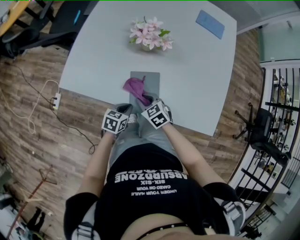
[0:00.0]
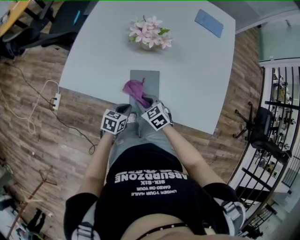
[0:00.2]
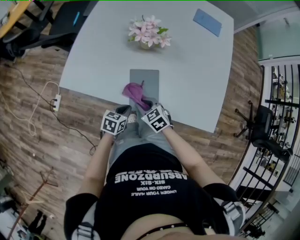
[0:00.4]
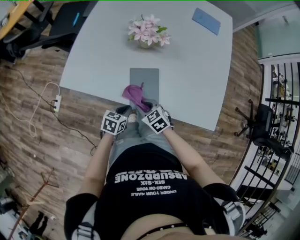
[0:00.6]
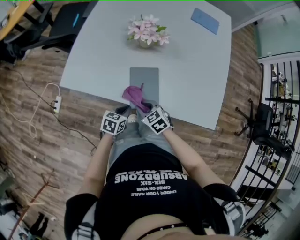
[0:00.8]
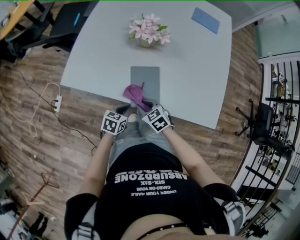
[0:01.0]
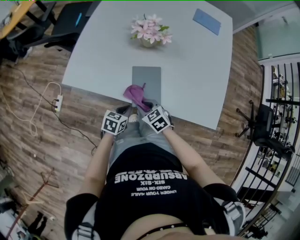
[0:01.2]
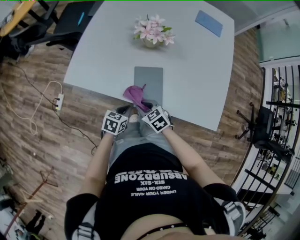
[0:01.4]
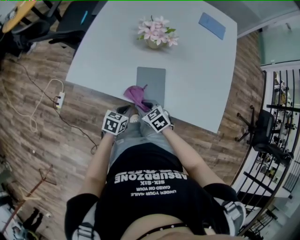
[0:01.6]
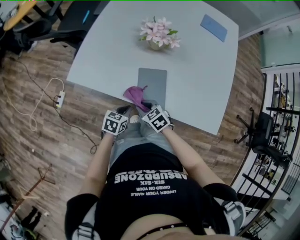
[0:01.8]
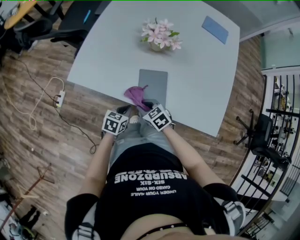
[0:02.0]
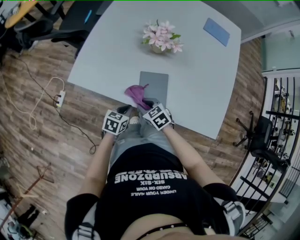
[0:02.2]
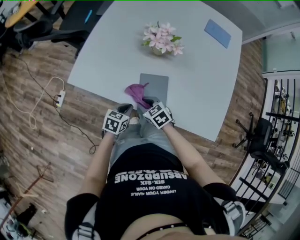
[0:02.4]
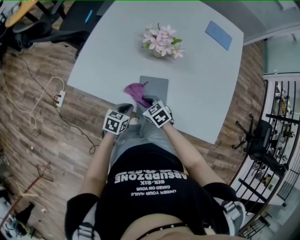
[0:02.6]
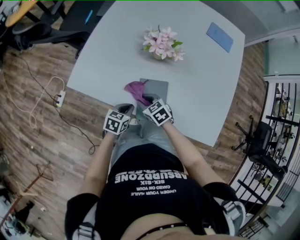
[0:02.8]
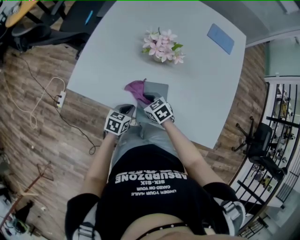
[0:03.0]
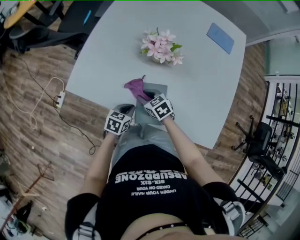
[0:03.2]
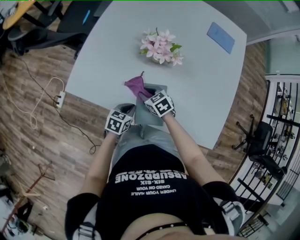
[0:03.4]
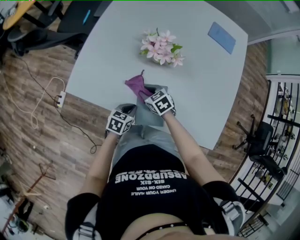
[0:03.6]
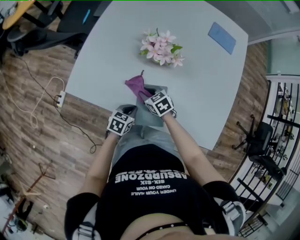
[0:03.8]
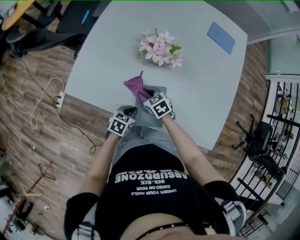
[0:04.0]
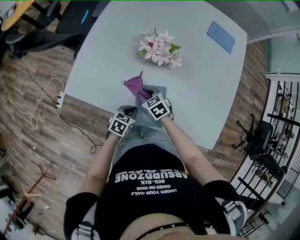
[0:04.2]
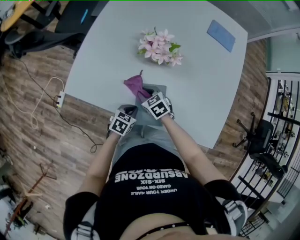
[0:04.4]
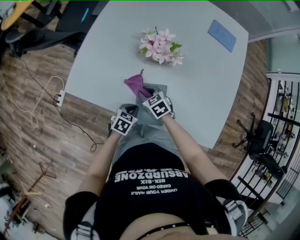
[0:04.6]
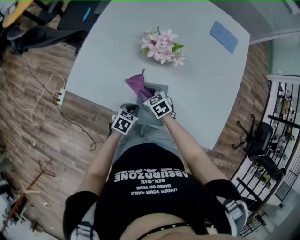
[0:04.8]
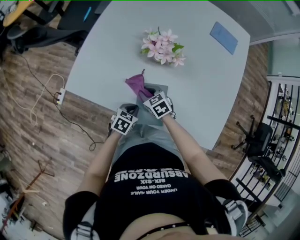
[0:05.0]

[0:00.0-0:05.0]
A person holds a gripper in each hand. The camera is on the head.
0:00.0 to 0:01.6: The left gripper shifts by approximately 5 cm. Meanwhile the right gripper shifts about 5 cm backward.
0:01.6 to 0:03.4: The left gripper travels forward by roughly 10 cm. Meanwhile the right gripper shifts about 15 cm forward.
0:03.4 to 0:05.0: There are only small adjustments of the grippers.

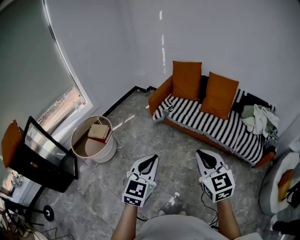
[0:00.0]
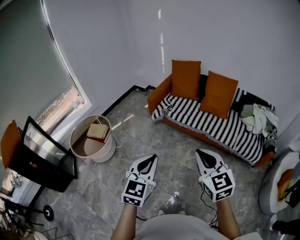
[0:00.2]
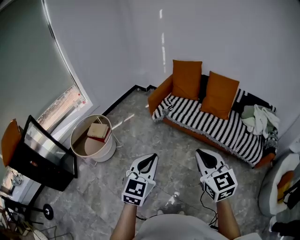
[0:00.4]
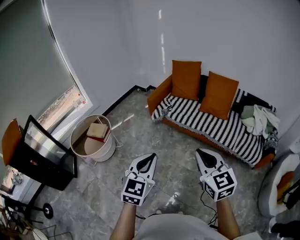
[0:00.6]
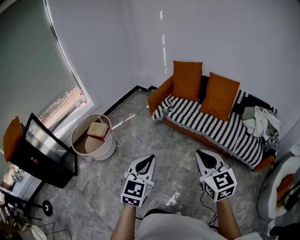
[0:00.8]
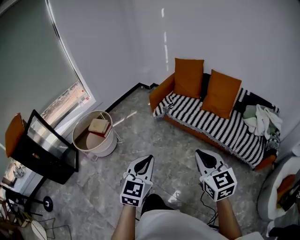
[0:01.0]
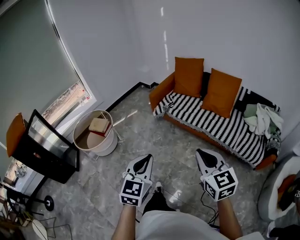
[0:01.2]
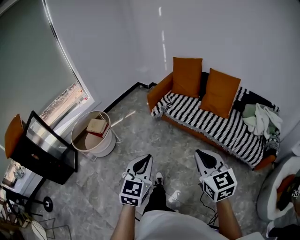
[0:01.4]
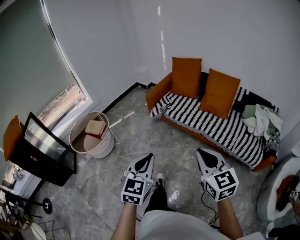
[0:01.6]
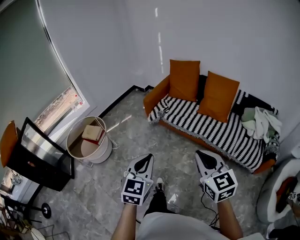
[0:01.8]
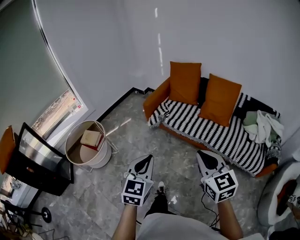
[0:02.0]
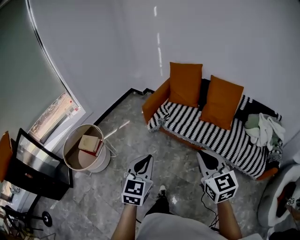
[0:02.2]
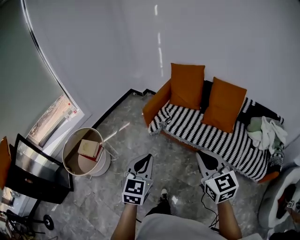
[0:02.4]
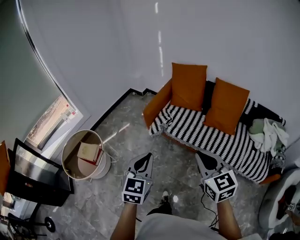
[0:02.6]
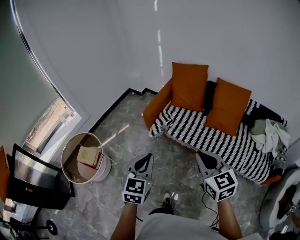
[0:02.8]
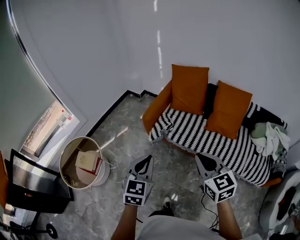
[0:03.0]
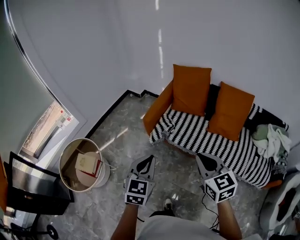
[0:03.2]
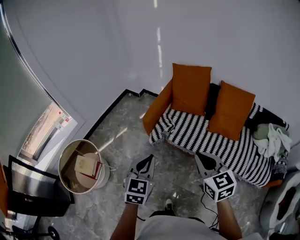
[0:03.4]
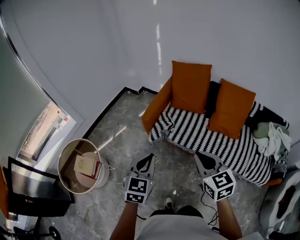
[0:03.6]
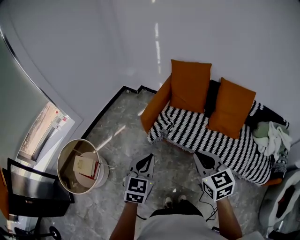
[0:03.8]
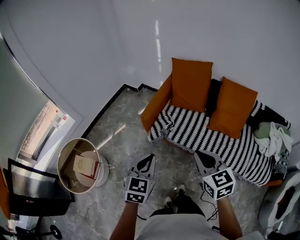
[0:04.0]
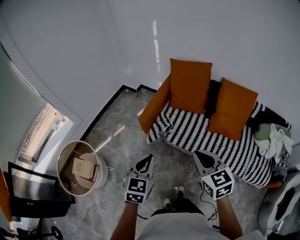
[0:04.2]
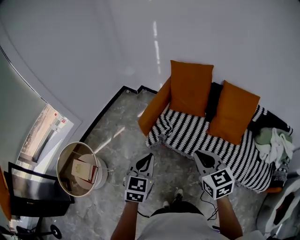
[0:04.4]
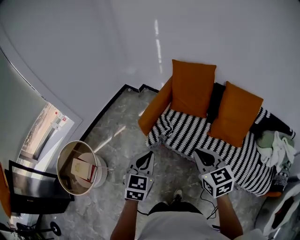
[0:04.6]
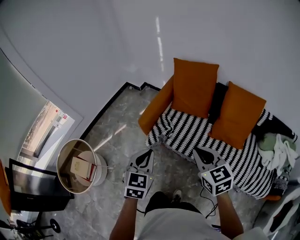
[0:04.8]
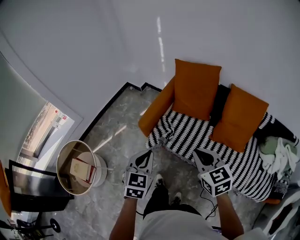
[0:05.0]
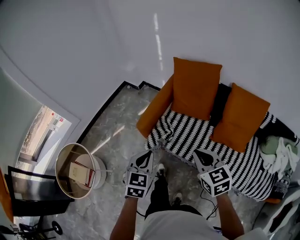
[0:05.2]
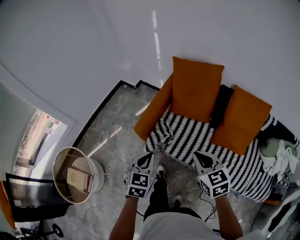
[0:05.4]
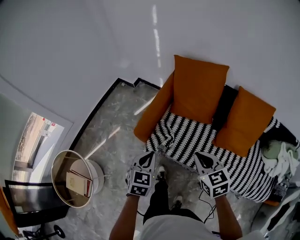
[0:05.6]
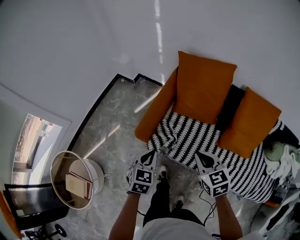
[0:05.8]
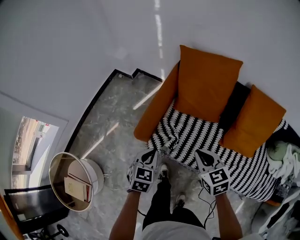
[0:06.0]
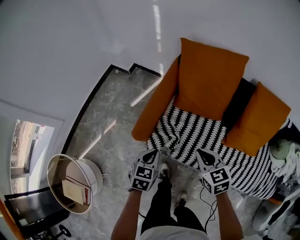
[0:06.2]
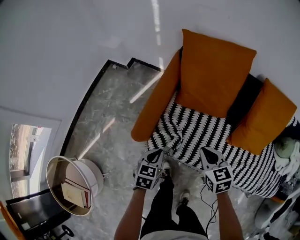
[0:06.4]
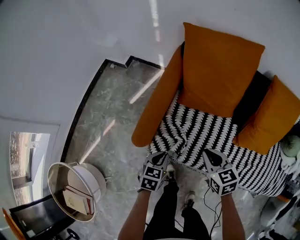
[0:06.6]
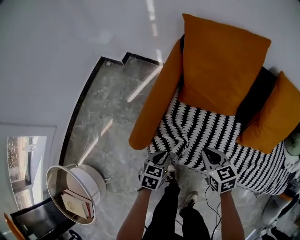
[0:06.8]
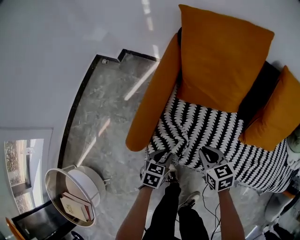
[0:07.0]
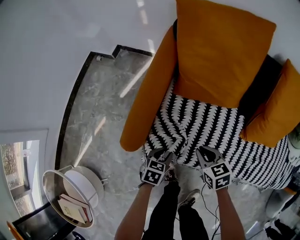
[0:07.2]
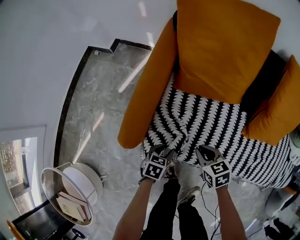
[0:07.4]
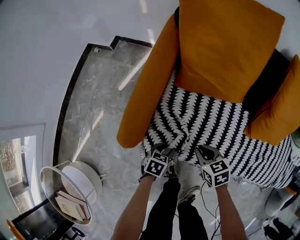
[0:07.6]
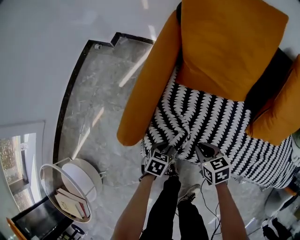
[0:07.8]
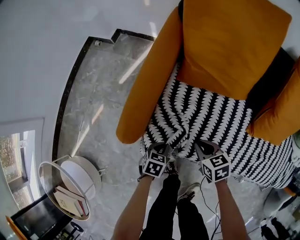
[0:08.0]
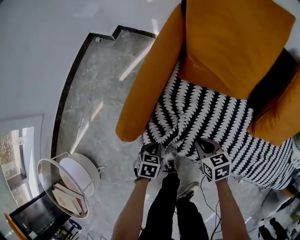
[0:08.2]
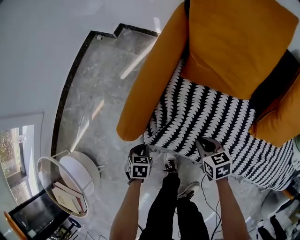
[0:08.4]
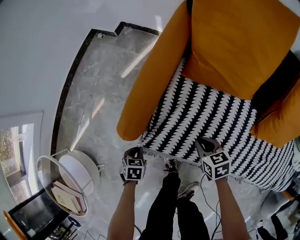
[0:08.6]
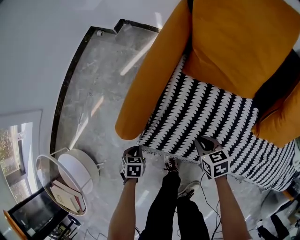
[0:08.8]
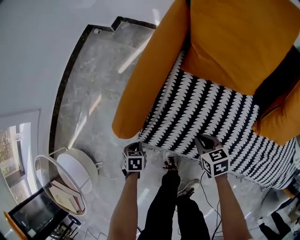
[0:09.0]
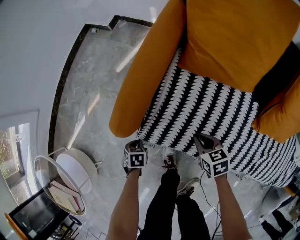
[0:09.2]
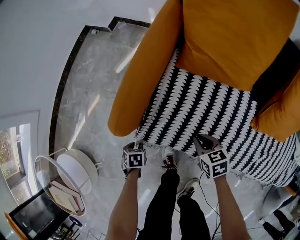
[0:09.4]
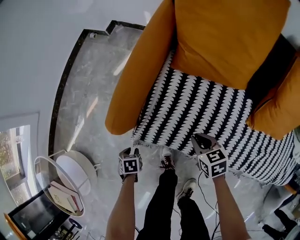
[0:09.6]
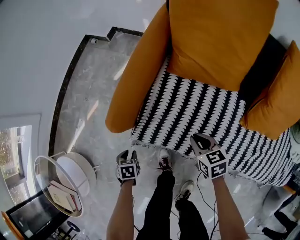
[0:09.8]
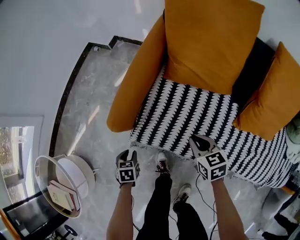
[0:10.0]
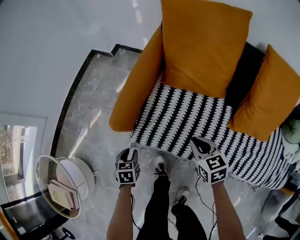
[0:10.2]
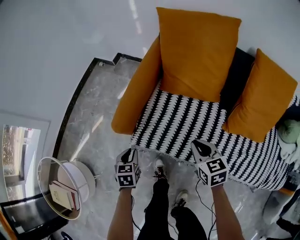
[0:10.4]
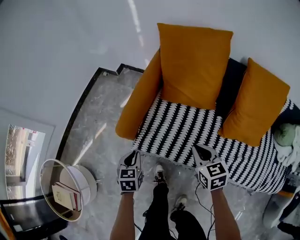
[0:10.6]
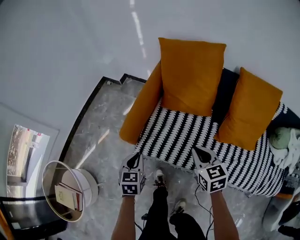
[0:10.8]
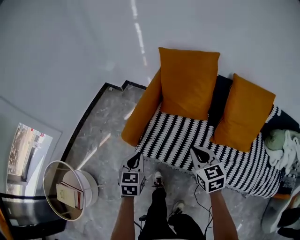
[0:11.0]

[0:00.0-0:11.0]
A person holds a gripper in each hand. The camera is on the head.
0:00.0 to 0:01.6: Both grippers move to the right, some 10 cm.
0:01.6 to 0:03.2: The pair of grippers is taken forward, about 40 cm.
0:03.2 to 0:04.8: The two grippers go approximately 20 cm forward.
0:04.8 to 0:06.2: The right gripper heads forward and downward, covering roughly 35 cm, while the left gripper goes some 40 cm downward and forward, and turns by some 20 degrees.
0:06.2 to 0:07.8: The grippers both shift downward by some 30 cm. The right gripper turns by approximately 20 degrees. Meanwhile the left gripper turns by about 30 degrees, and opens up.
0:07.8 to 0:09.4: The right gripper is displaced downward by approximately 5 cm. The left gripper ends up some 20 cm from where it was, changes its angle by about 30 degrees, and closes, then opens again.
0:09.4 to 0:11.0: Both grippers move upward, about 40 cm. The right gripper swivels about 30 degrees. Meanwhile the left gripper points its fingers about 50 degrees further upward, and closes up.

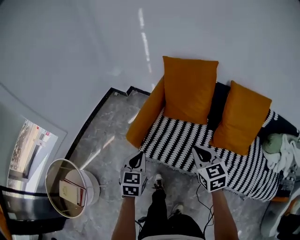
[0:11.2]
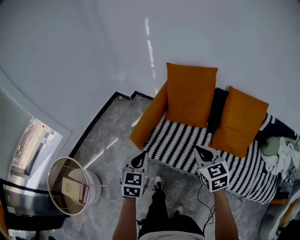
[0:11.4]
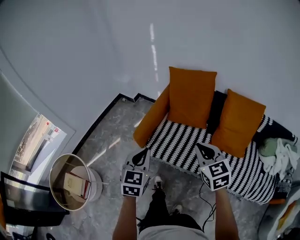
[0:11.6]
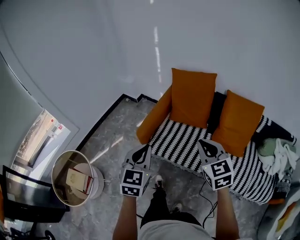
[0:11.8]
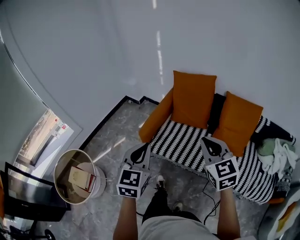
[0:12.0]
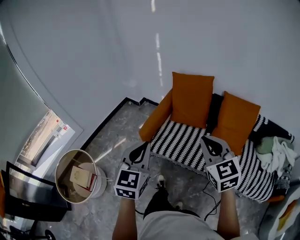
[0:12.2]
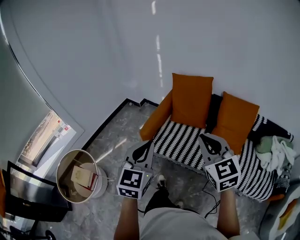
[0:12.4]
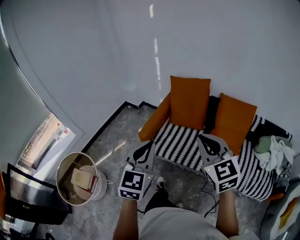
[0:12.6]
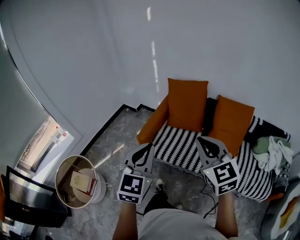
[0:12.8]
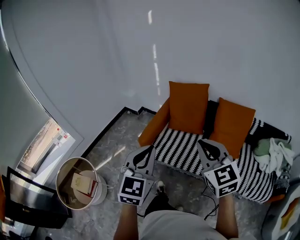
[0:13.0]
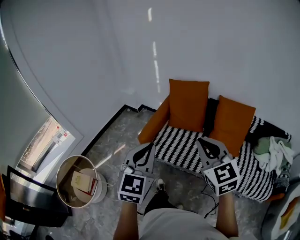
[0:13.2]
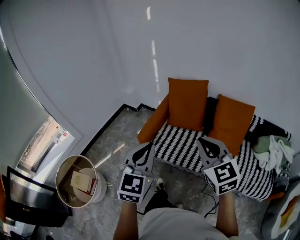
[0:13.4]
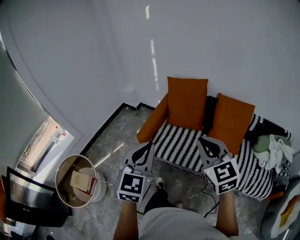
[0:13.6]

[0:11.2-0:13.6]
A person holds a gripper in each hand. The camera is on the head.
0:11.2 to 0:12.4: The two grippers go about 35 cm upward and backward. The left gripper rotates approximately 20 degrees; the right gripper rotates roughly 20 degrees.
0:12.4 to 0:13.6: There are only small adjustments of the grippers.

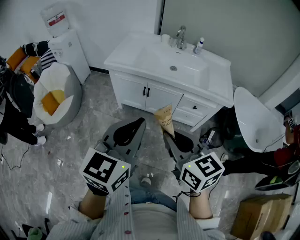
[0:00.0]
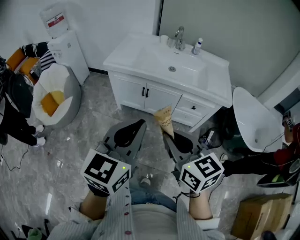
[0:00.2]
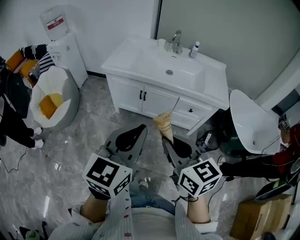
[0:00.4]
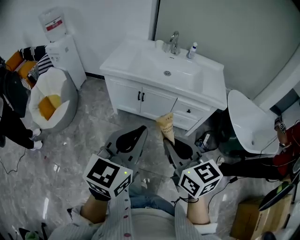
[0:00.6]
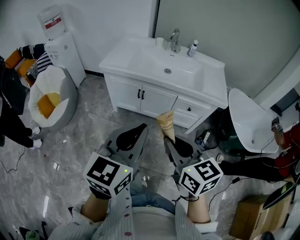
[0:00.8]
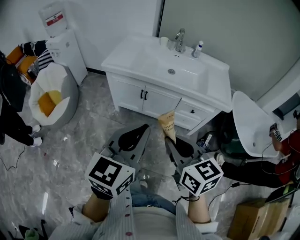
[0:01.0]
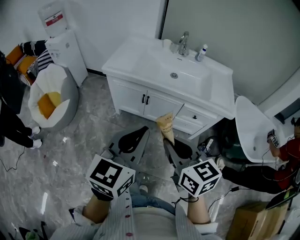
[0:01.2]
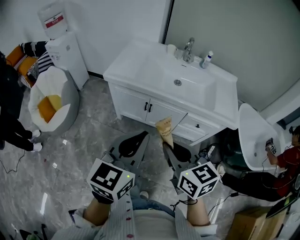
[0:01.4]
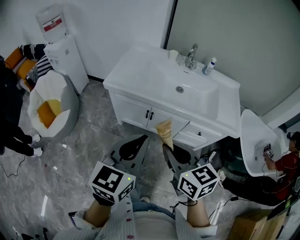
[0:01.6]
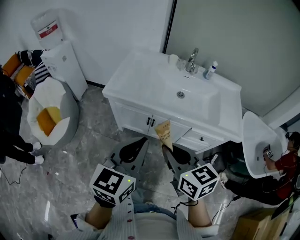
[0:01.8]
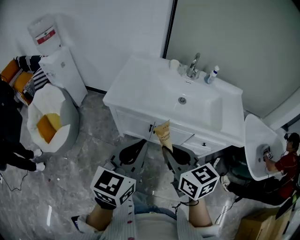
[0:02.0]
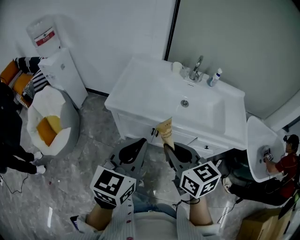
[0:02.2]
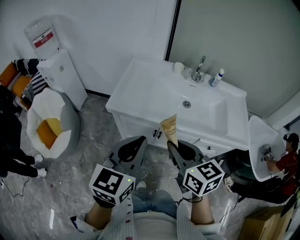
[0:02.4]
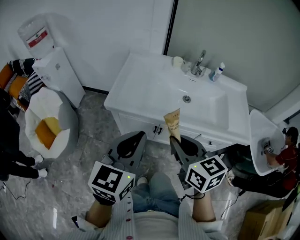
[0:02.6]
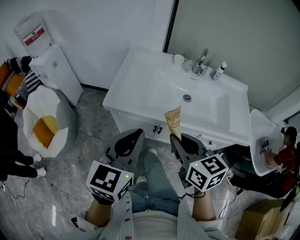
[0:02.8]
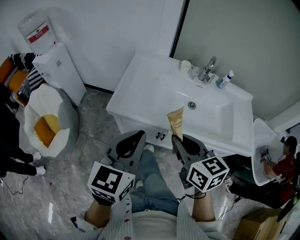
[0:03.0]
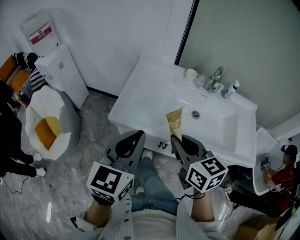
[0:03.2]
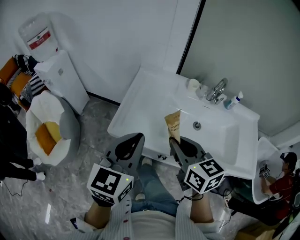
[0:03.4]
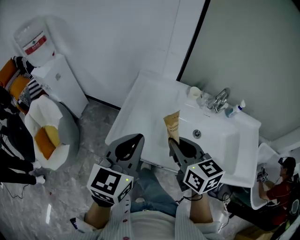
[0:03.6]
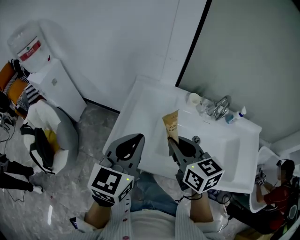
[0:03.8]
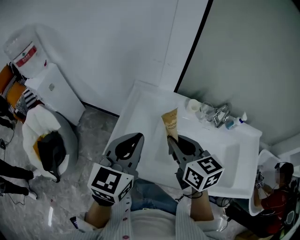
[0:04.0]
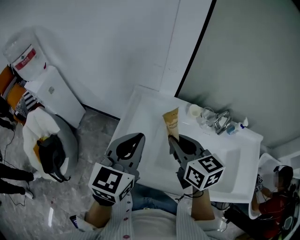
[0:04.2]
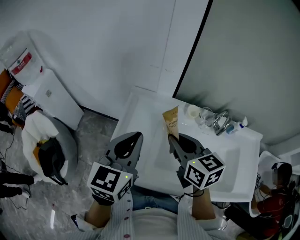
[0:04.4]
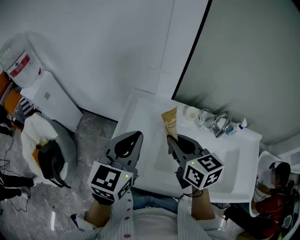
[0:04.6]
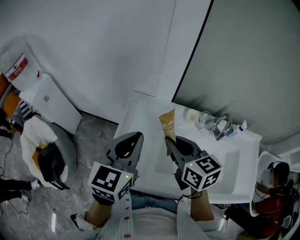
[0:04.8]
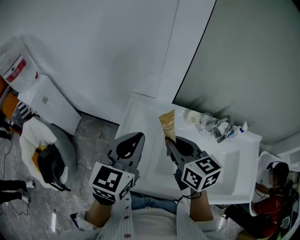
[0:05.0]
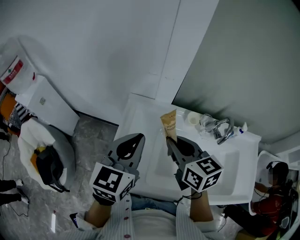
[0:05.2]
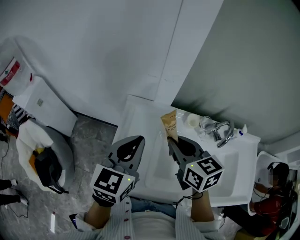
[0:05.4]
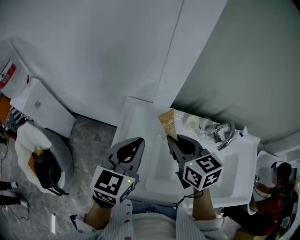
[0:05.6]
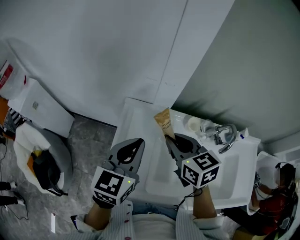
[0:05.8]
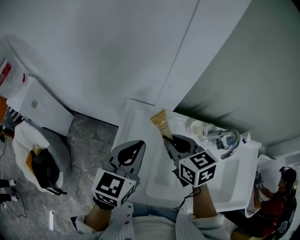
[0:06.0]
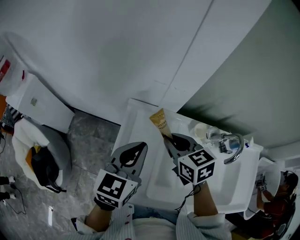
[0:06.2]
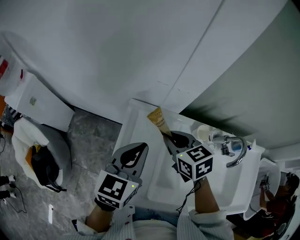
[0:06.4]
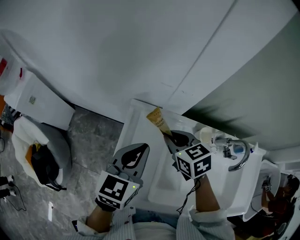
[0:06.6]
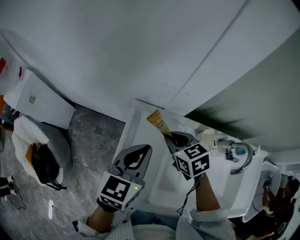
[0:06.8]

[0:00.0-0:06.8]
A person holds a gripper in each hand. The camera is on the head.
0:00.0 to 0:01.4: The two grippers go roughly 10 cm forward.
0:01.4 to 0:02.8: The left gripper travels forward and to the left by about 25 cm; the right gripper goes roughly 25 cm forward.
0:02.8 to 0:04.0: Both grippers move forward, some 30 cm.
0:04.0 to 0:05.4: The two grippers go about 10 cm forward.
0:05.4 to 0:06.8: The left gripper is displaced downward and forward by roughly 10 cm. Meanwhile the right gripper is displaced downward and forward by some 20 cm, and turns by about 20 degrees.
